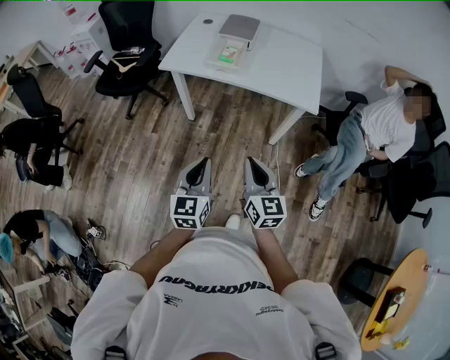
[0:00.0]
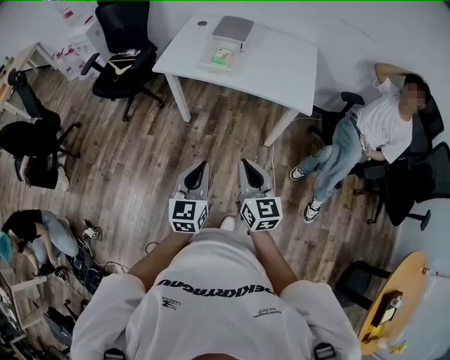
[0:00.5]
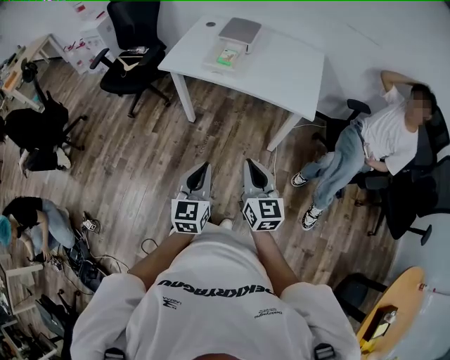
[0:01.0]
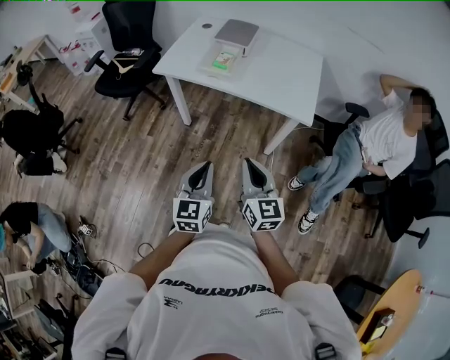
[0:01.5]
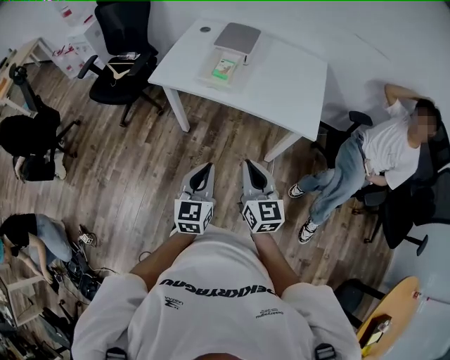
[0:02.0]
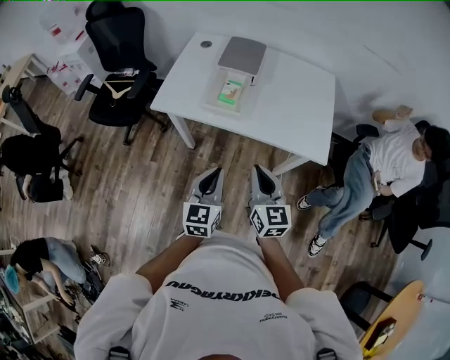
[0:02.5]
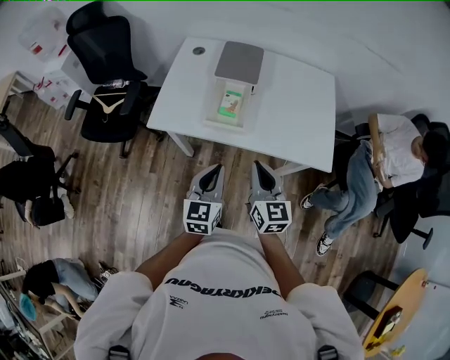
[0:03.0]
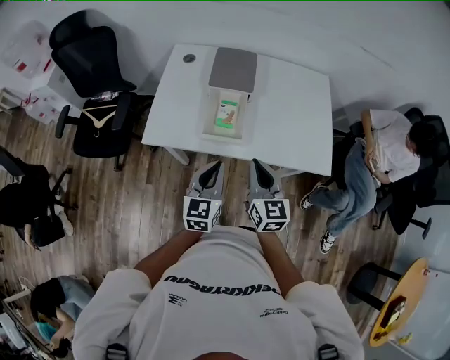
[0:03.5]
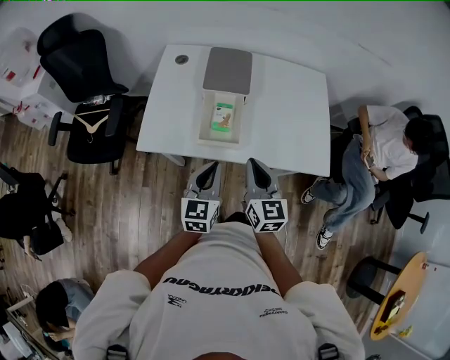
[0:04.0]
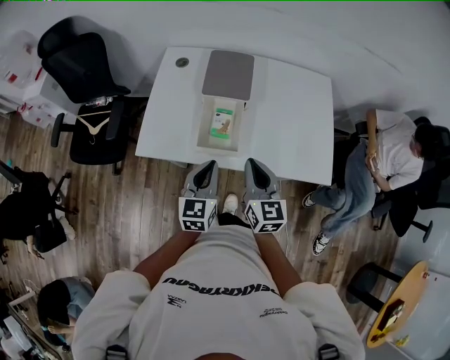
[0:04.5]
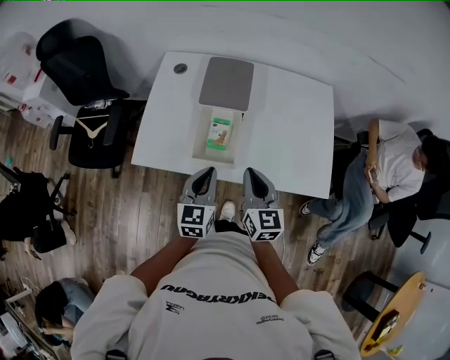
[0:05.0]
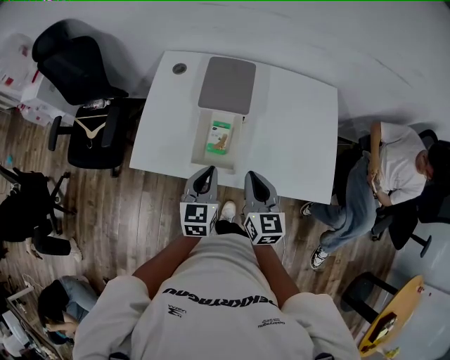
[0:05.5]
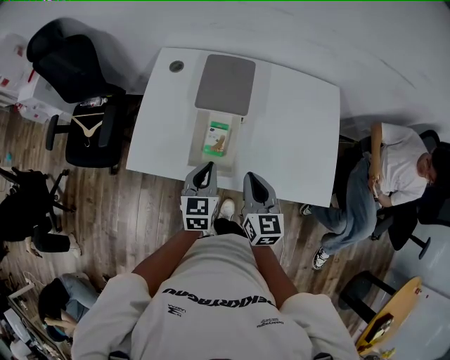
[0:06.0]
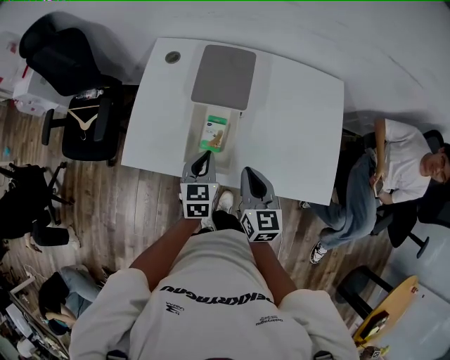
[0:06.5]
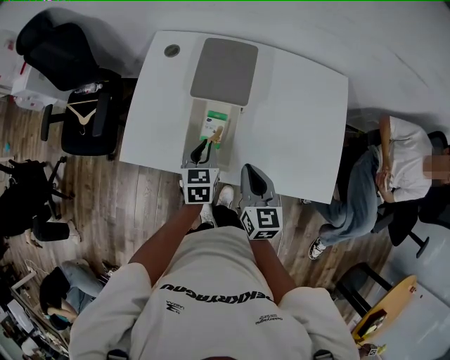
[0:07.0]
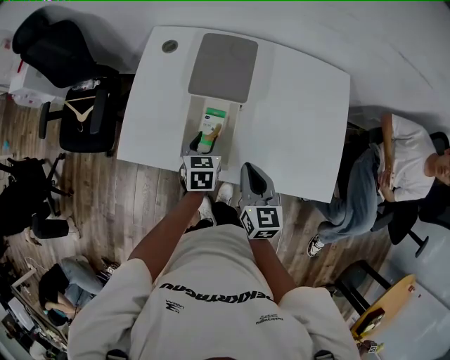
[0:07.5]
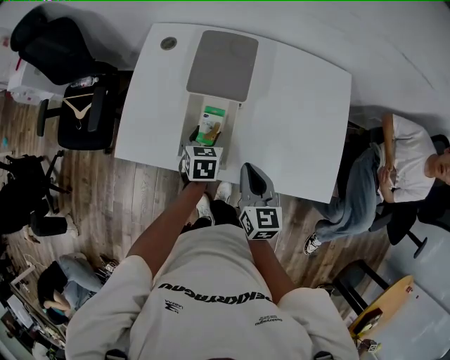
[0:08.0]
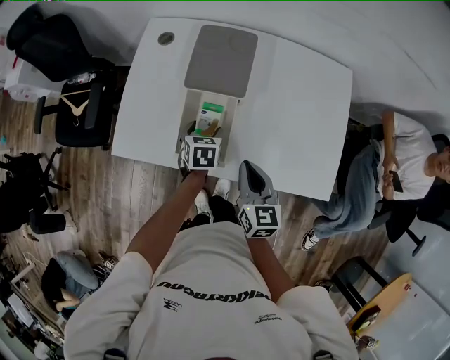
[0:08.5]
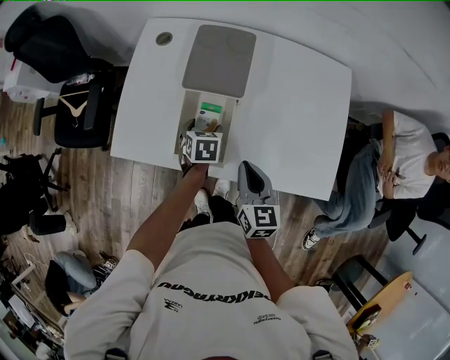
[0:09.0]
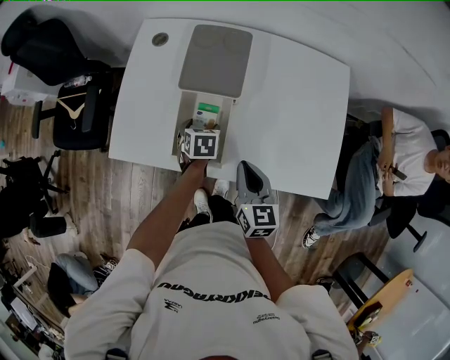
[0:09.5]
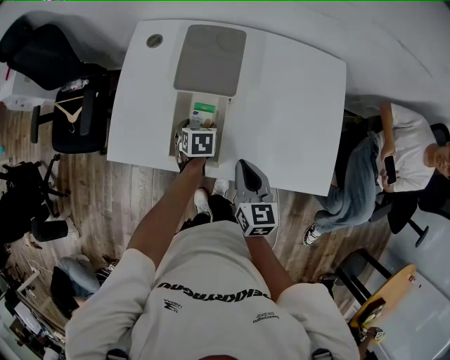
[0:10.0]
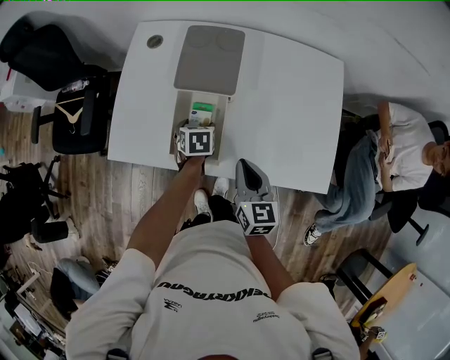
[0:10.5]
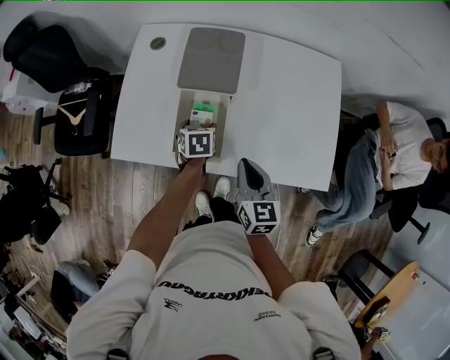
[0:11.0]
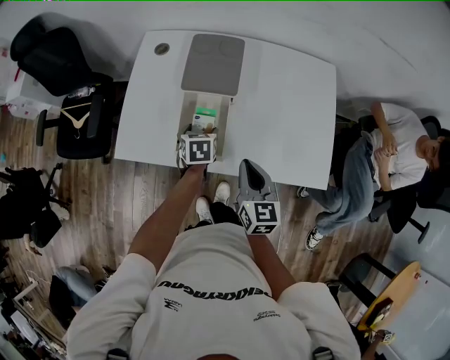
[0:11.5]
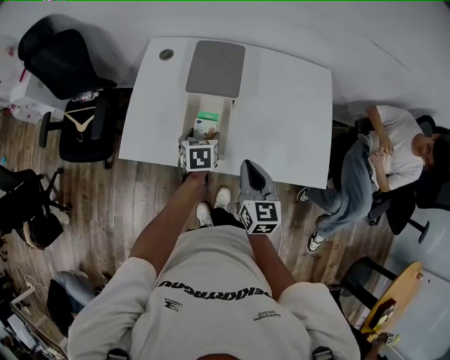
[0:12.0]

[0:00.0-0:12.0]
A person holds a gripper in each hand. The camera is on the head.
0:00.0 to 0:02.0: The left gripper goes approximately 15 cm forward and to the right; the right gripper moves forward, approximately 15 cm.
0:02.0 to 0:04.0: Both grippers travel together forward, some 30 cm.
0:04.0 to 0:06.0: Both grippers move forward and downward, approximately 15 cm.
0:06.0 to 0:08.0: The left gripper is displaced downward and forward by approximately 15 cm, swivels approximately 20 degrees, and opens its fingers.
0:08.0 to 0:10.0: The left gripper travels downward by approximately 5 cm.
0:10.0 to 0:12.0: The right gripper travels upward by roughly 5 cm. The left gripper shifts some 10 cm upward and backward.

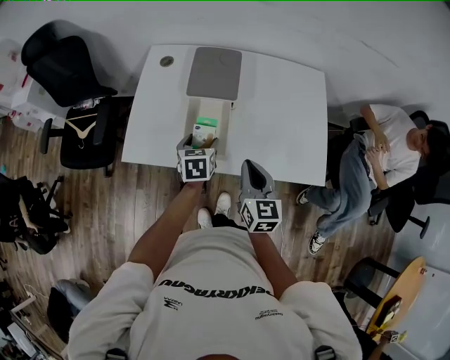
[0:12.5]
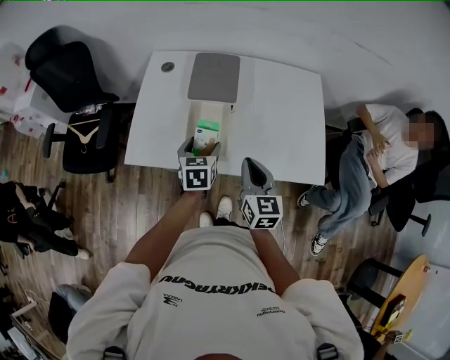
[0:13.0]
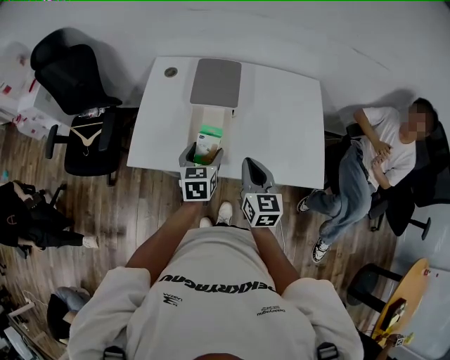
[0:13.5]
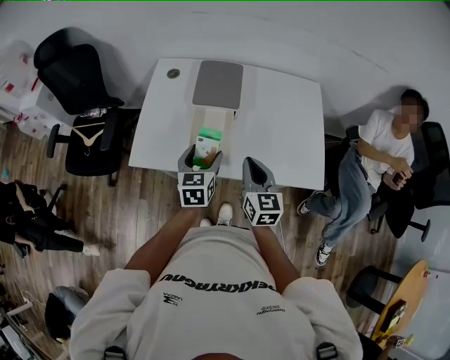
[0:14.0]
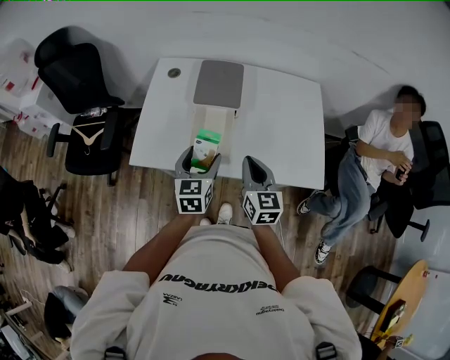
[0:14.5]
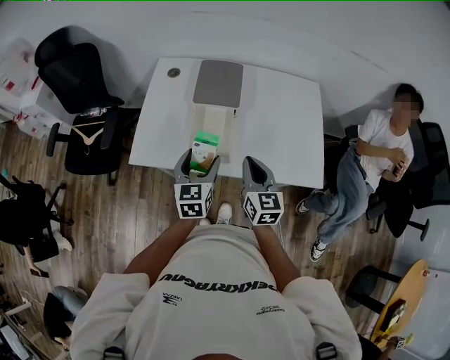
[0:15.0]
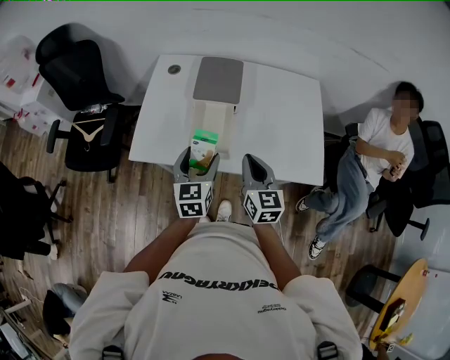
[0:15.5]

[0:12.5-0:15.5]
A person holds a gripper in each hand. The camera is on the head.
0:12.5 to 0:14.0: The left gripper shifts about 5 cm upward.
0:14.0 to 0:15.5: The grippers move only a little.

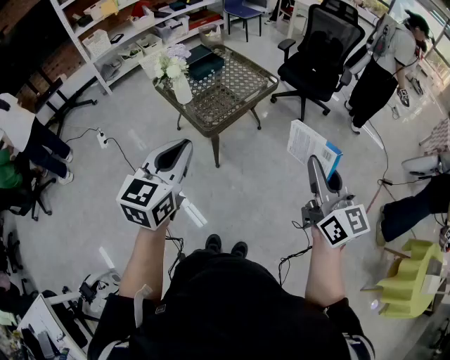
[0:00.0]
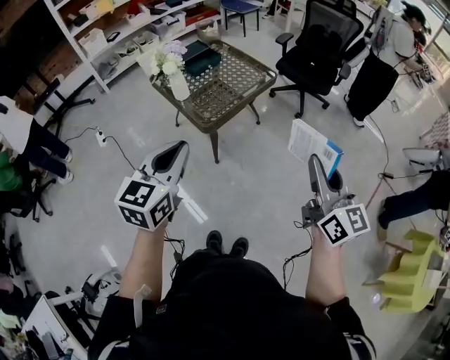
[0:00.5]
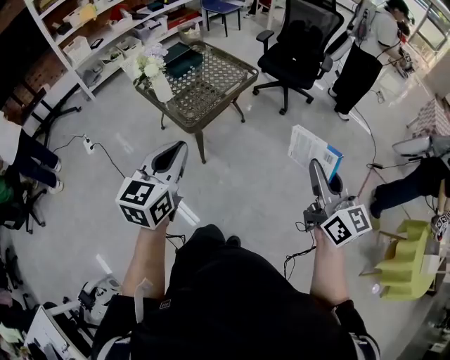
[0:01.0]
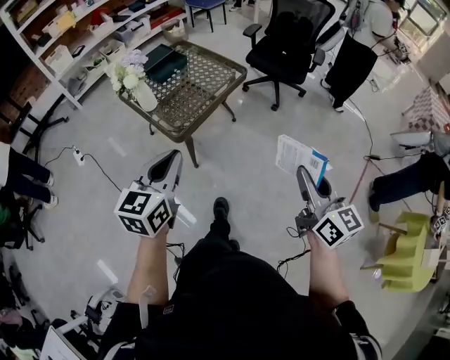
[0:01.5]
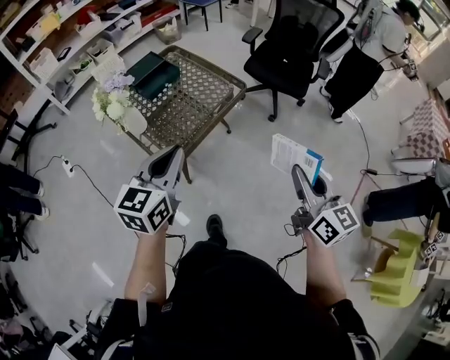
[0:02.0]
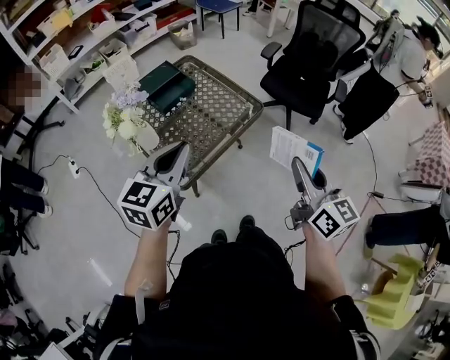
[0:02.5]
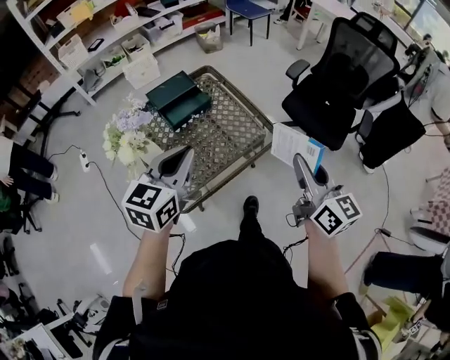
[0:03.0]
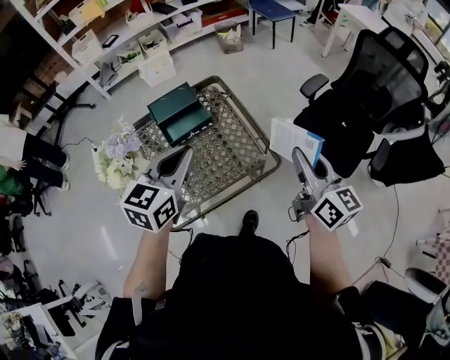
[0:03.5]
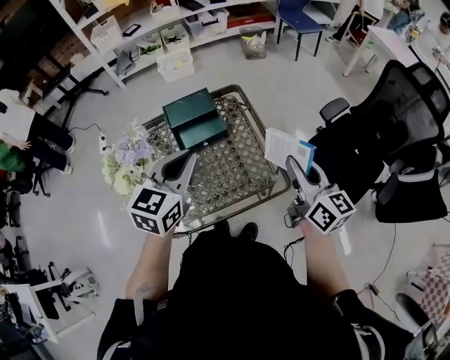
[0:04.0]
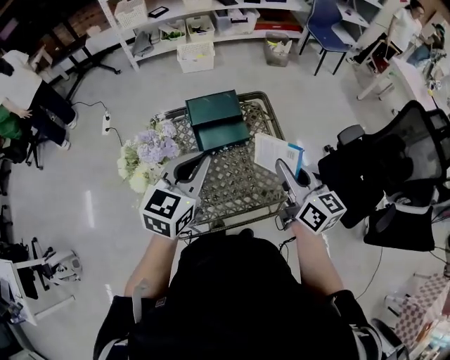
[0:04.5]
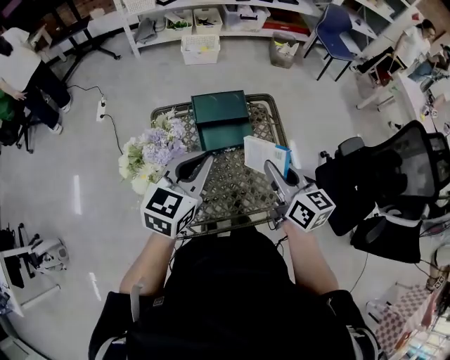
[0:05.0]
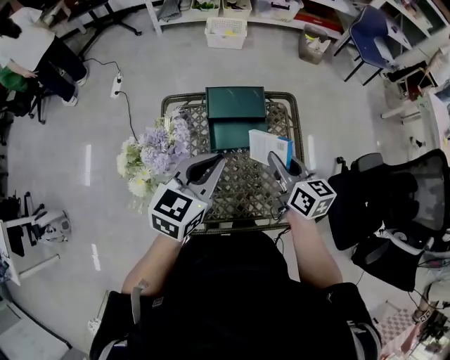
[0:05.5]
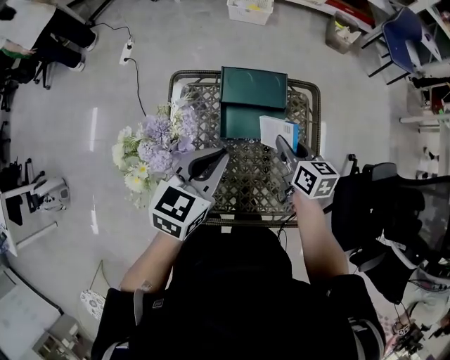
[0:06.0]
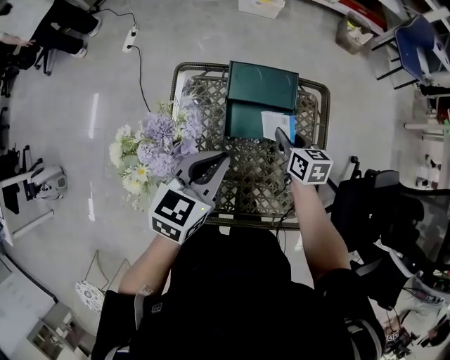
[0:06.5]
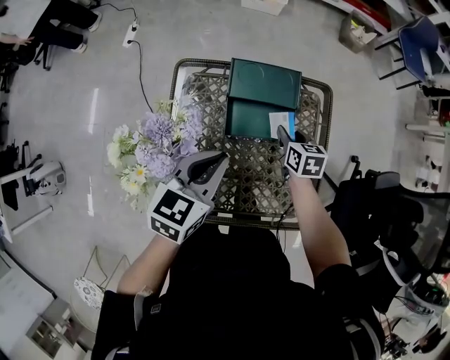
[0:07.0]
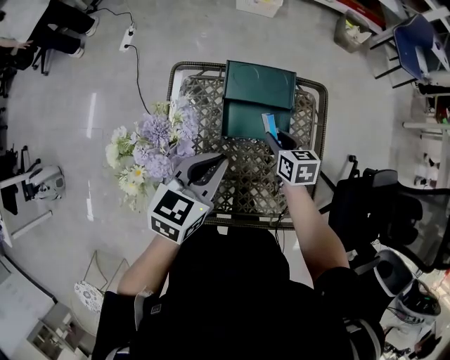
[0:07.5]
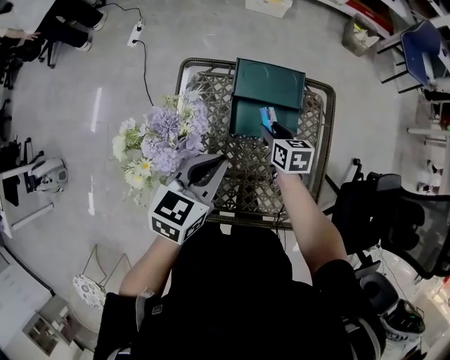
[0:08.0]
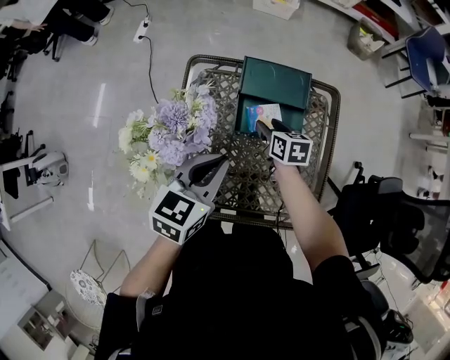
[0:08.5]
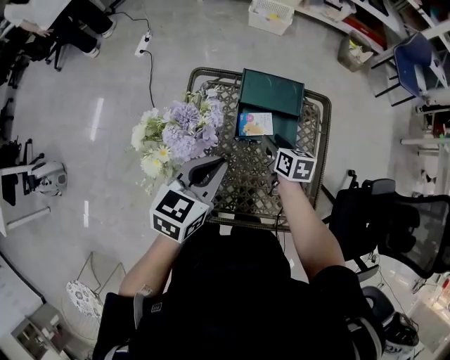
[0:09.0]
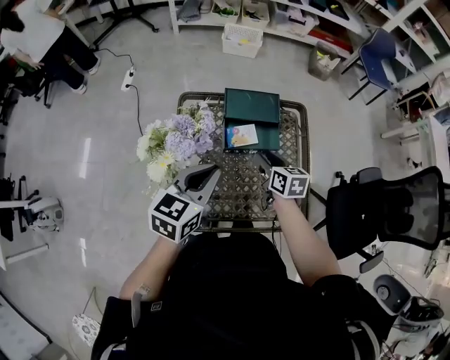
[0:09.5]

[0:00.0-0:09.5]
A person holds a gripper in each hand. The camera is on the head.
0:00.0 to 0:02.0: The two grippers go roughly 20 cm forward.
0:02.0 to 0:04.0: The right gripper moves about 50 cm, and changes its angle by approximately 30 degrees, while the left gripper changes place by some 35 cm, and changes its angle by some 30 degrees.
0:04.0 to 0:05.5: The left gripper is displaced forward, to the left and downward by about 10 cm. The right gripper travels to the left, forward and downward by about 25 cm, and rotates some 30 degrees.
0:05.5 to 0:07.5: The left gripper is displaced downward by about 10 cm. Meanwhile the right gripper goes roughly 20 cm downward and forward, and swivels approximately 30 degrees.
0:07.5 to 0:09.5: The right gripper is displaced upward and backward by some 10 cm. The left gripper is displaced backward by some 5 cm.

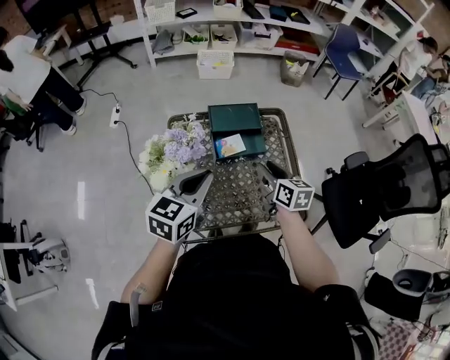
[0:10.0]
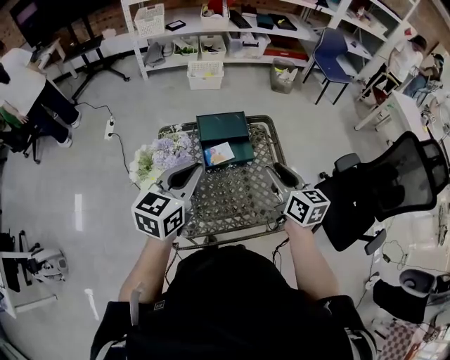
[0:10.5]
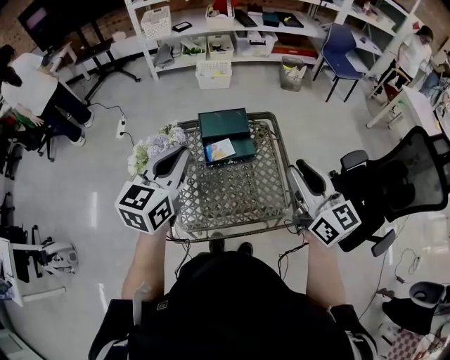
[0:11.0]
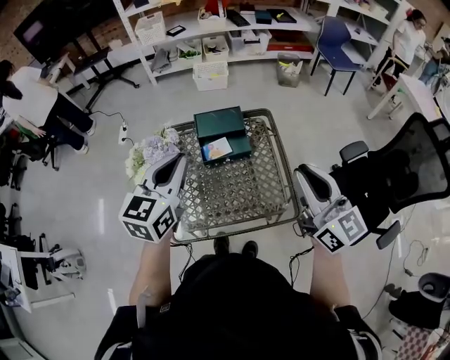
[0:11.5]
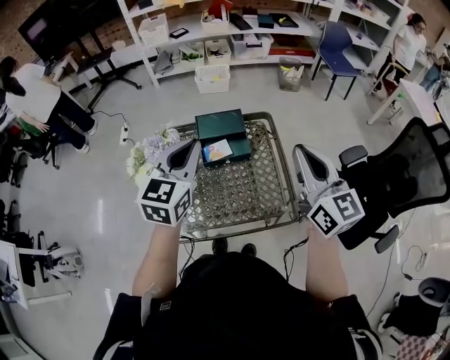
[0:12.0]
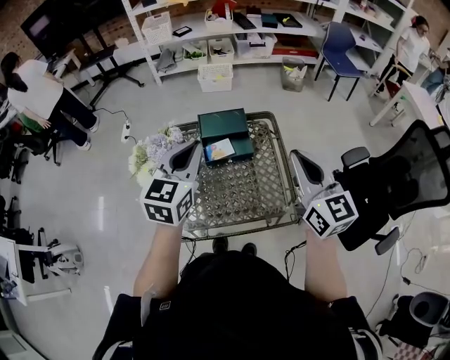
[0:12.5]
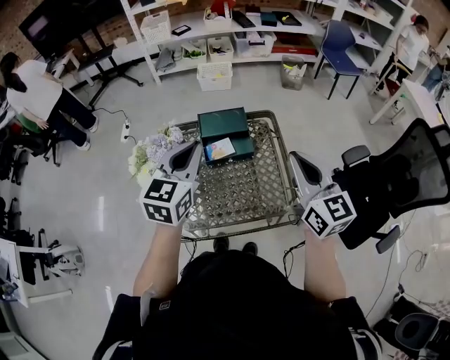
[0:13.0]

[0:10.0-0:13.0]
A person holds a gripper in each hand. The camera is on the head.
0:10.0 to 0:11.5: The right gripper is displaced upward, to the right and backward by about 30 cm, points its fingers roughly 30 degrees further upward, and closes. Meanwhile the left gripper shifts roughly 10 cm upward.
0:11.5 to 0:13.0: The right gripper ends up approximately 5 cm from where it was.
